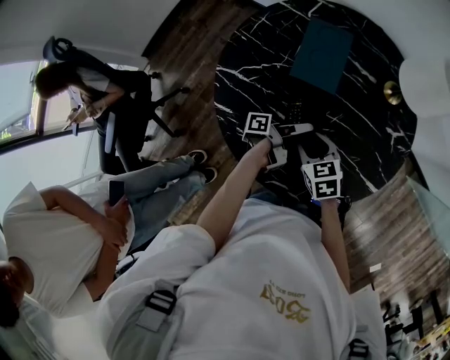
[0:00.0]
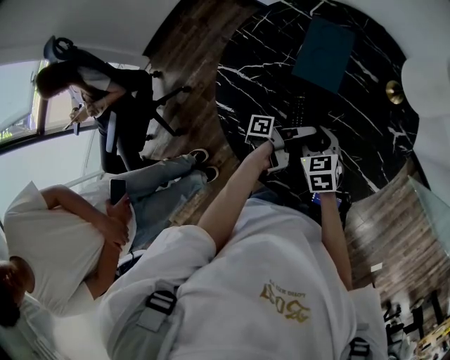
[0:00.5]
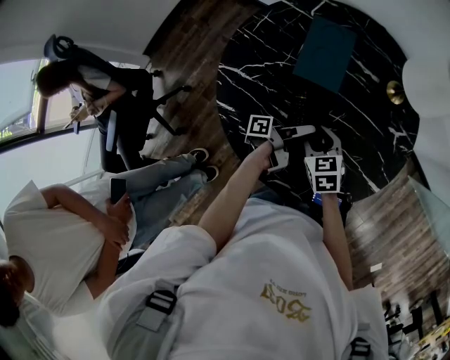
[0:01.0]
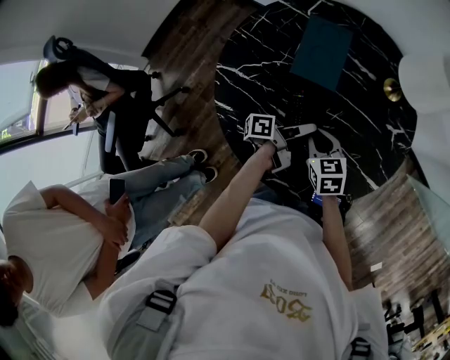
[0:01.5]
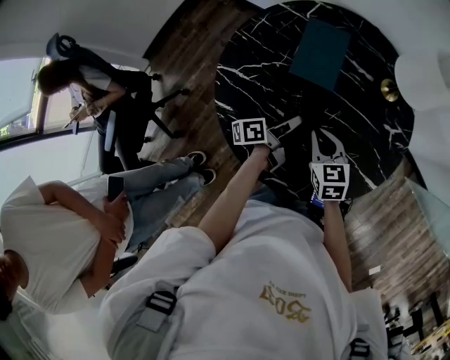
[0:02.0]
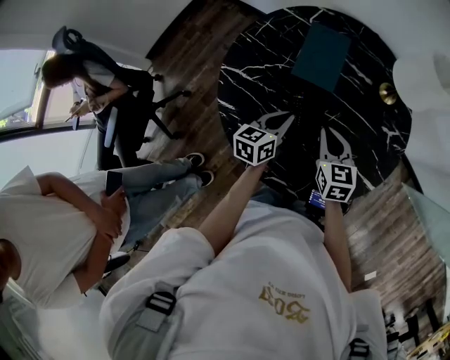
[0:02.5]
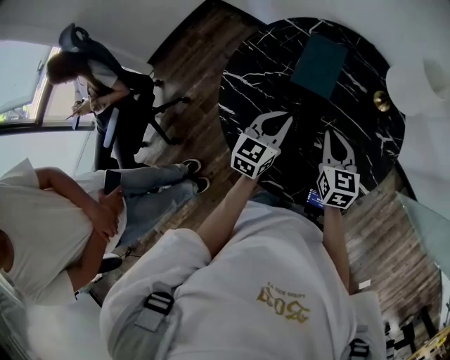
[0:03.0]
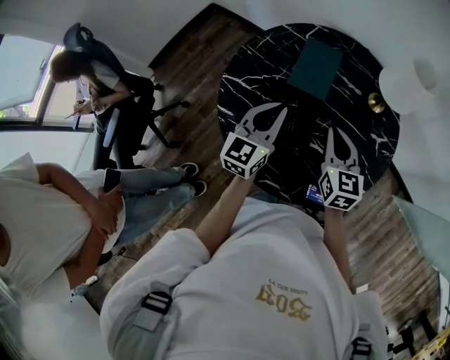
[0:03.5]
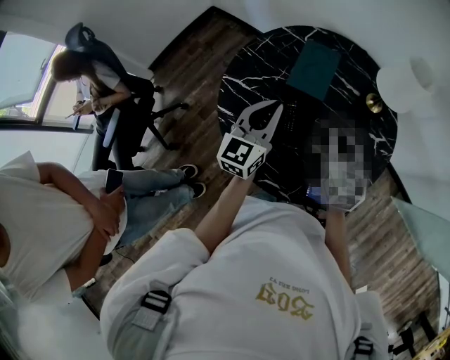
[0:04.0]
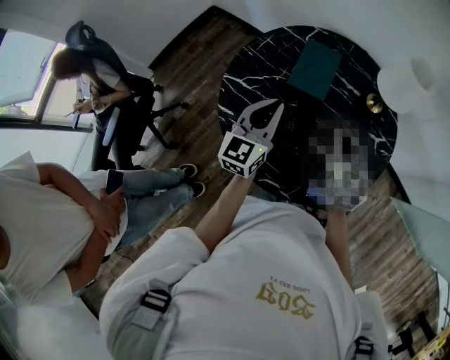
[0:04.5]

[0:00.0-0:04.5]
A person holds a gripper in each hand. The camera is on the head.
0:00.0 to 0:02.0: The left gripper turns by about 30 degrees, and closes its fingers. Meanwhile the right gripper closes its fingers.
0:02.0 to 0:04.5: The right gripper moves upward and to the right, approximately 15 cm, and turns by approximately 20 degrees, while the left gripper goes approximately 20 cm upward, and rotates around the line of its fingers by roughly 70 degrees, clockwise from behind.

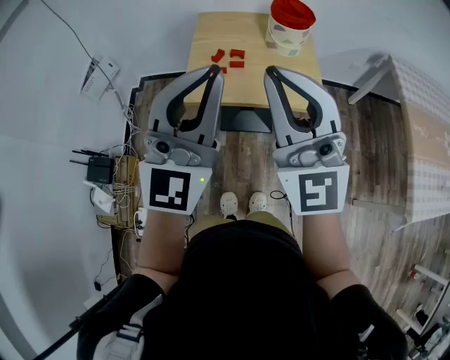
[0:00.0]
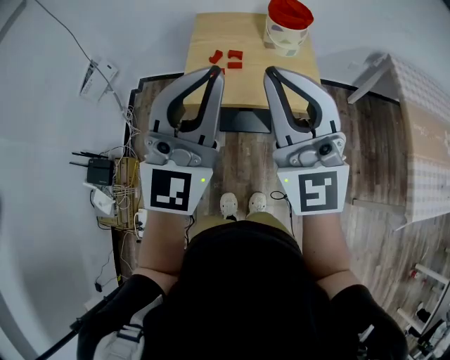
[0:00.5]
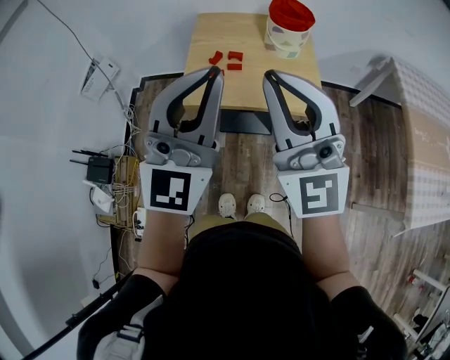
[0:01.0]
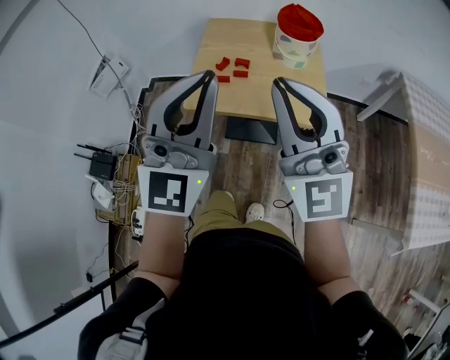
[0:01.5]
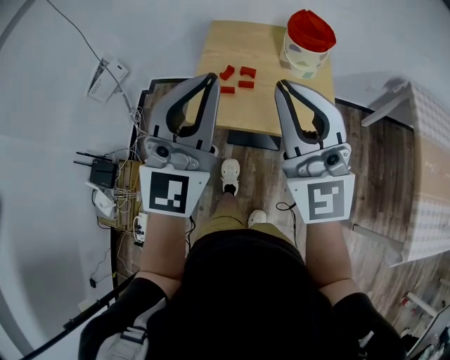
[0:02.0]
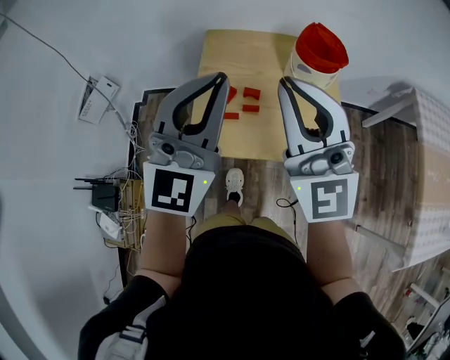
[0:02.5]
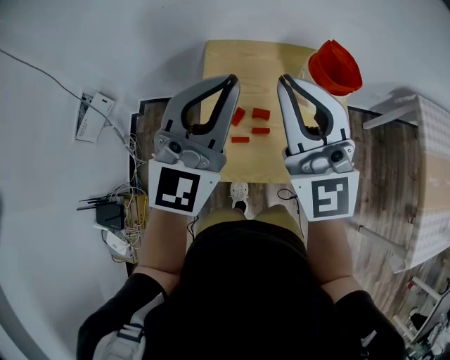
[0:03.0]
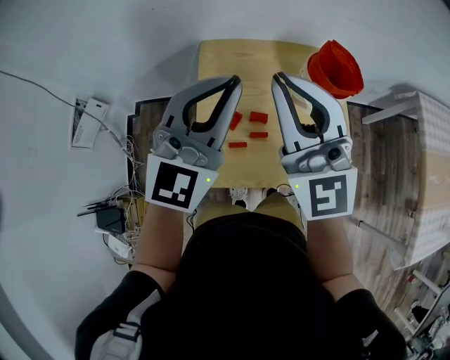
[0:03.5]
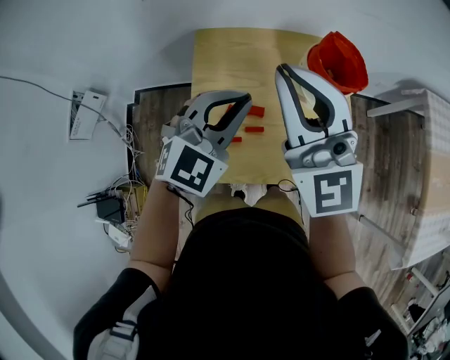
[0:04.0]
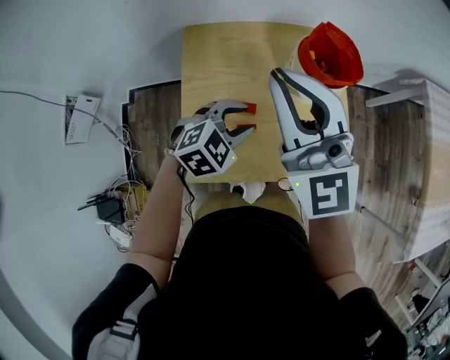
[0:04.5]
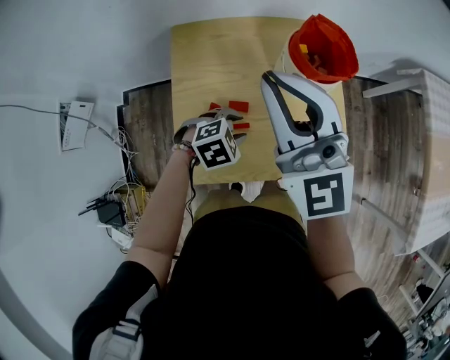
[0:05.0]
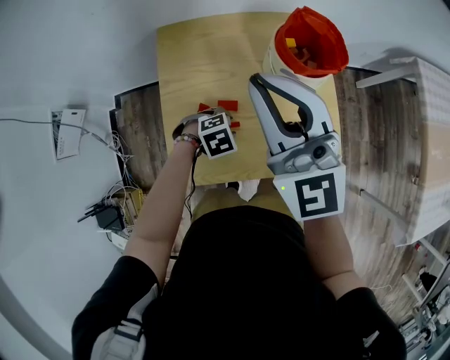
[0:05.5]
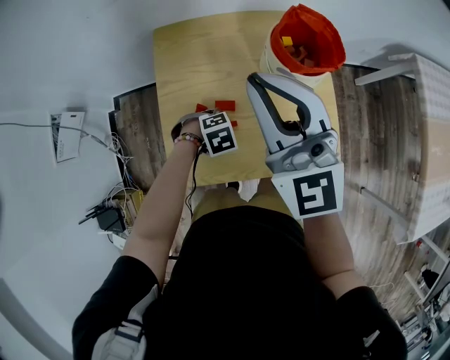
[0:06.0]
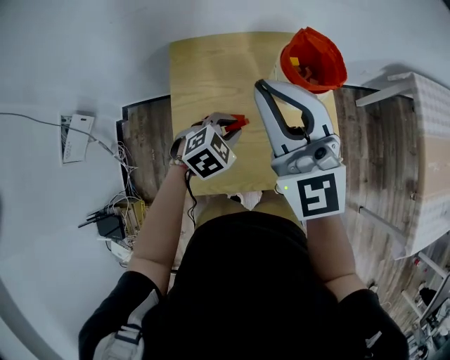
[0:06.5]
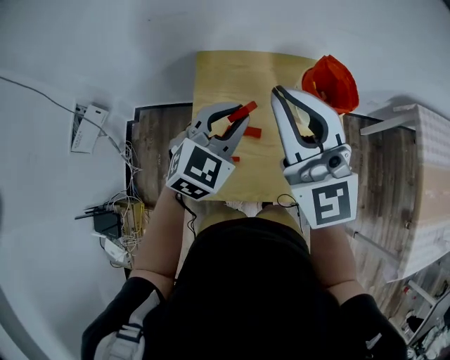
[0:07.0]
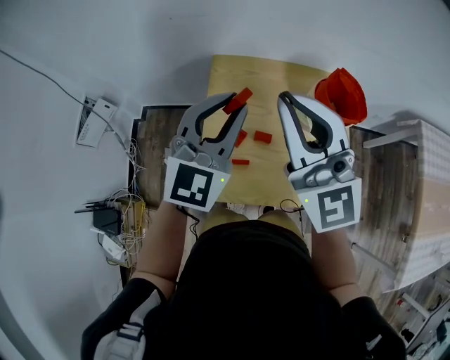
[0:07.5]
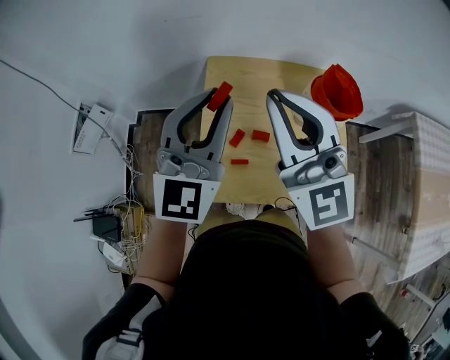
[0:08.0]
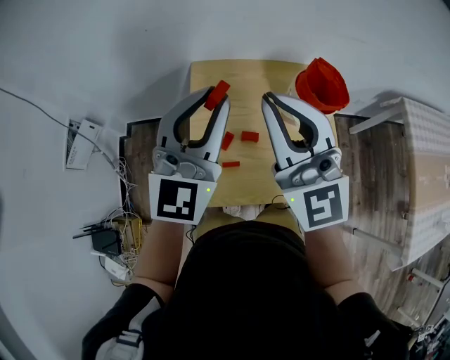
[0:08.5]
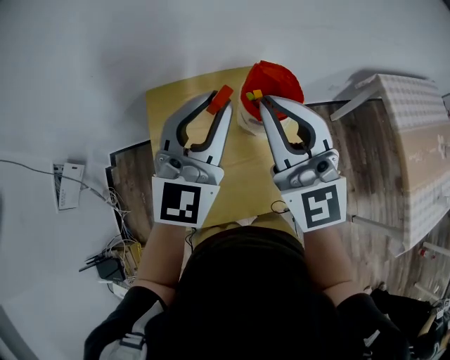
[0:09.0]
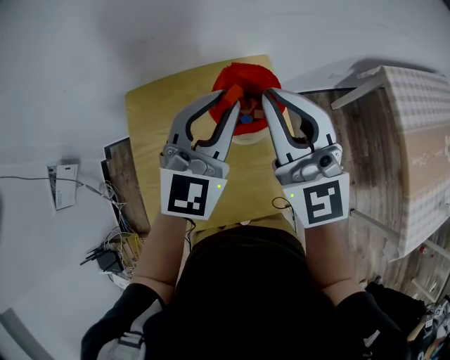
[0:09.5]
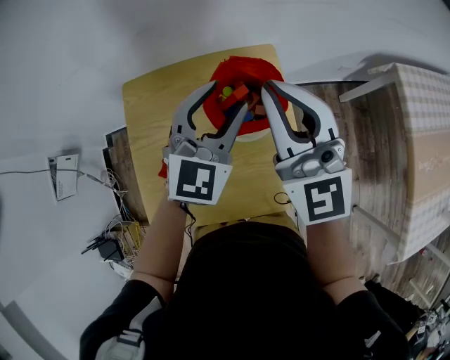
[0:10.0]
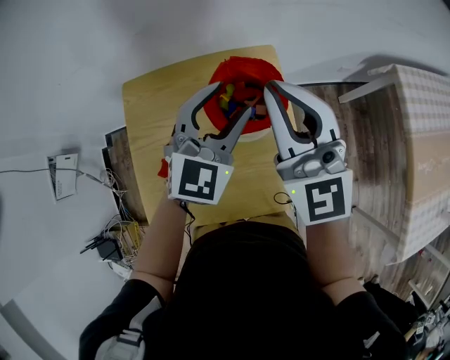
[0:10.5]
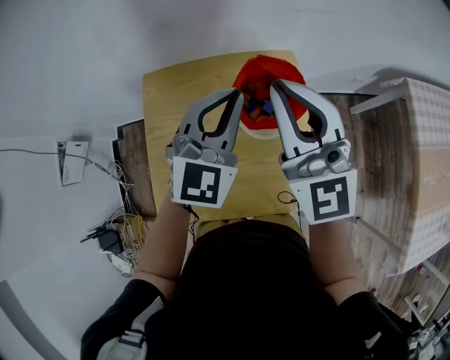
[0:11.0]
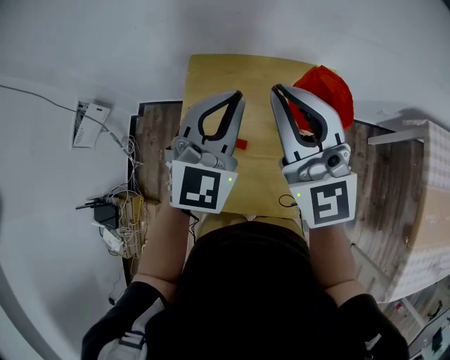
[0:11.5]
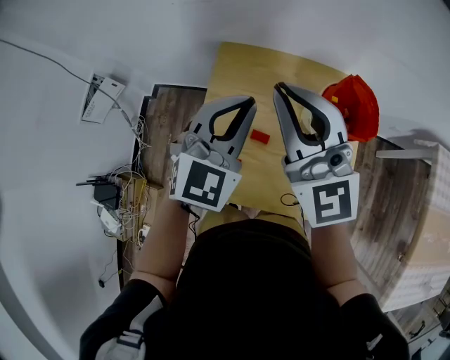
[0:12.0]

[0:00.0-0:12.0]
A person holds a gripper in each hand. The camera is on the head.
0:00.0 to 0:02.0: The two grippers go approximately 10 cm forward.
0:02.0 to 0:04.0: The right gripper is displaced forward by roughly 30 cm, while the left gripper shifts approximately 35 cm forward and downward, and points its fingers about 40 degrees further downward.
0:04.0 to 0:06.0: The right gripper goes roughly 5 cm downward. Meanwhile the left gripper goes some 30 cm downward, tilts its fingers approximately 60 degrees downward, and opens and closes again.
0:06.0 to 0:08.0: The left gripper is displaced upward by roughly 40 cm, and tips its fingers upward by roughly 90 degrees. The right gripper shifts by roughly 15 cm.
0:08.0 to 0:10.0: The right gripper travels to the right and forward by approximately 30 cm. The left gripper travels to the right, forward and downward by approximately 35 cm, swivels approximately 20 degrees, and opens.
0:10.0 to 0:12.0: The two grippers go approximately 25 cm to the left. The left gripper closes its fingers. The right gripper swivels some 20 degrees.

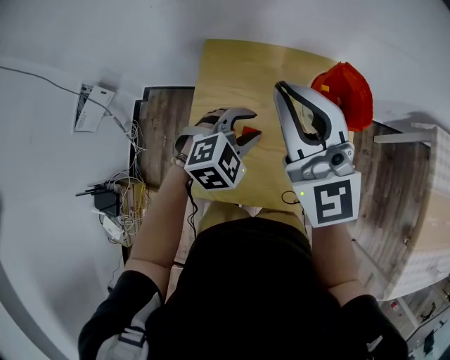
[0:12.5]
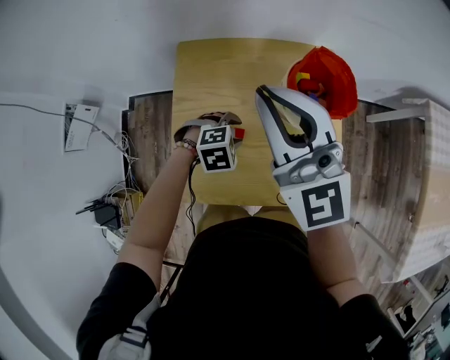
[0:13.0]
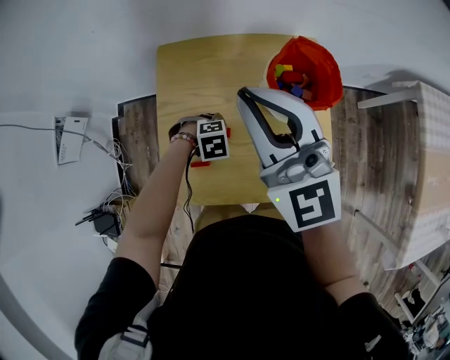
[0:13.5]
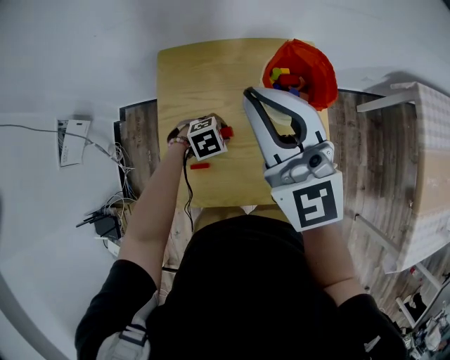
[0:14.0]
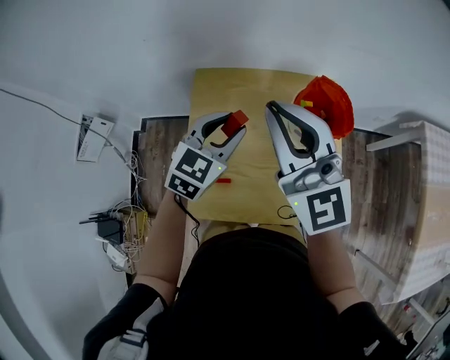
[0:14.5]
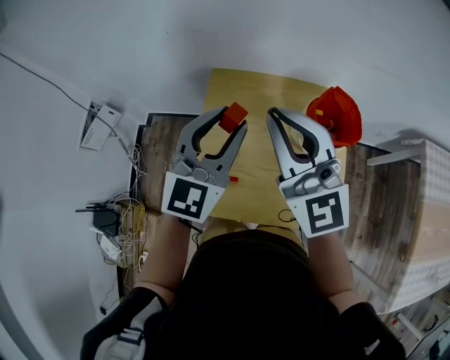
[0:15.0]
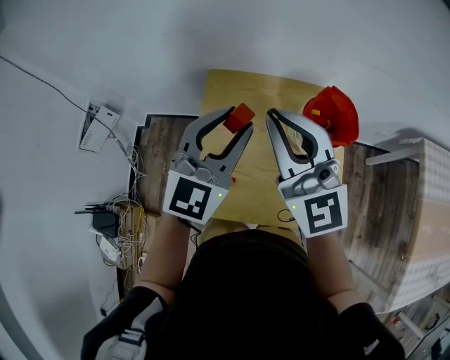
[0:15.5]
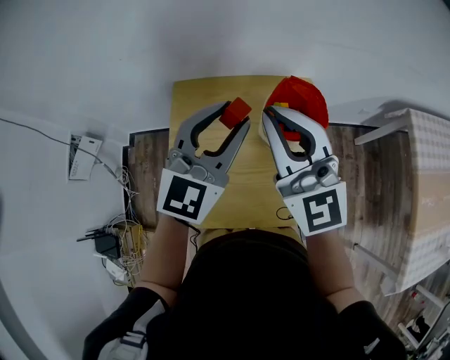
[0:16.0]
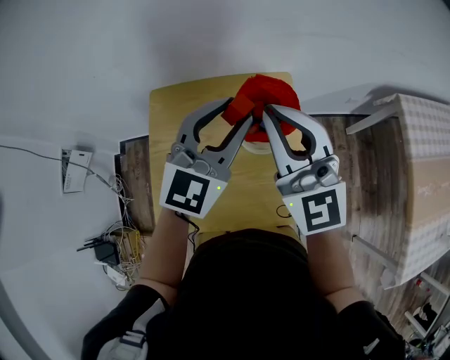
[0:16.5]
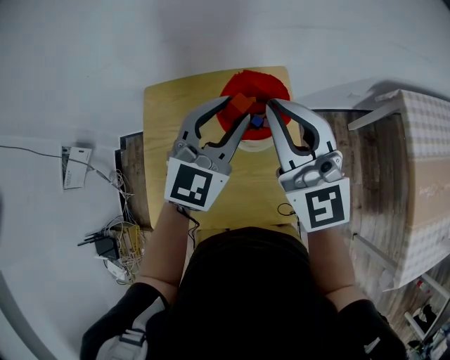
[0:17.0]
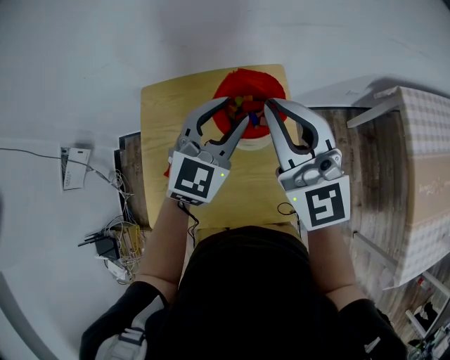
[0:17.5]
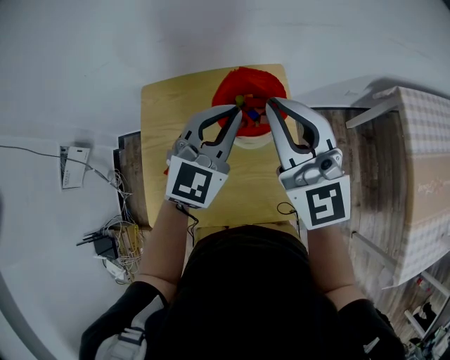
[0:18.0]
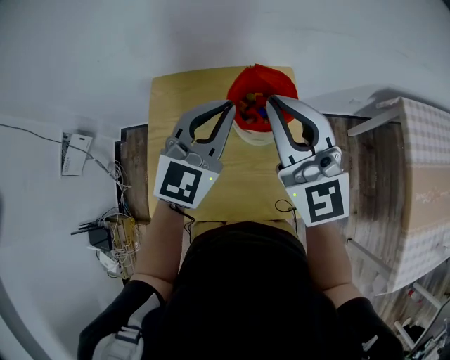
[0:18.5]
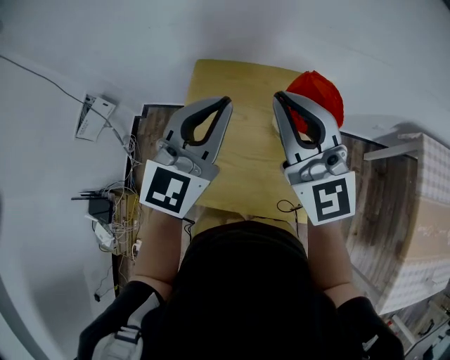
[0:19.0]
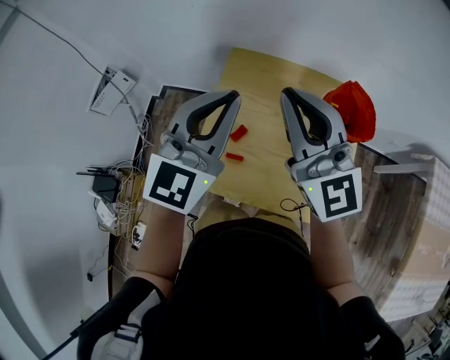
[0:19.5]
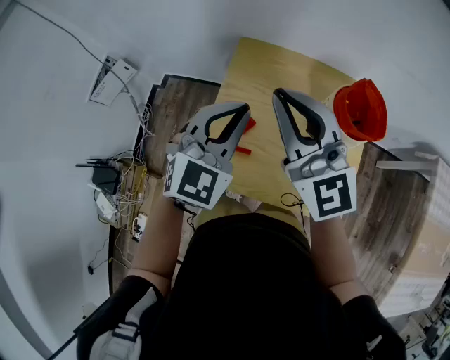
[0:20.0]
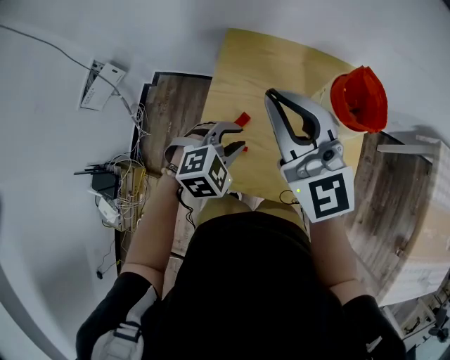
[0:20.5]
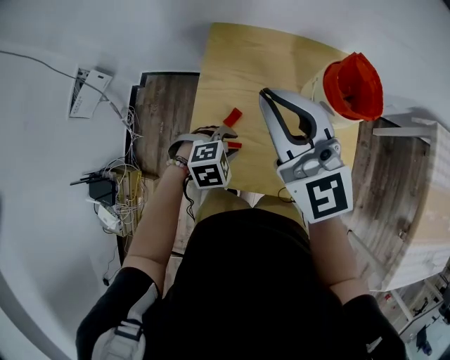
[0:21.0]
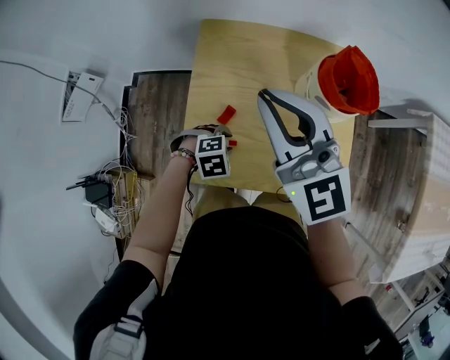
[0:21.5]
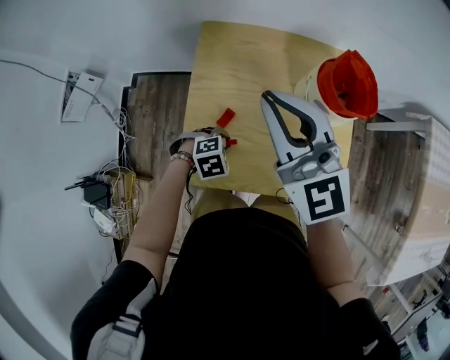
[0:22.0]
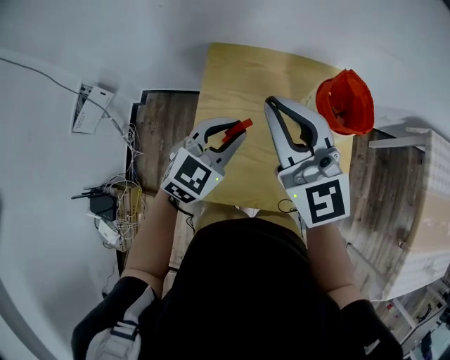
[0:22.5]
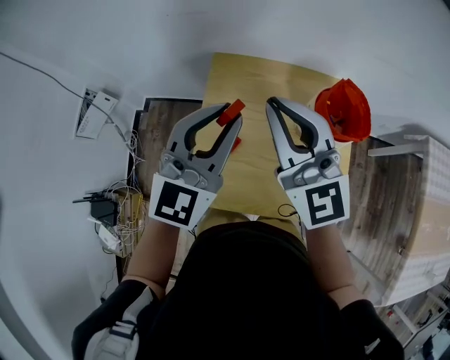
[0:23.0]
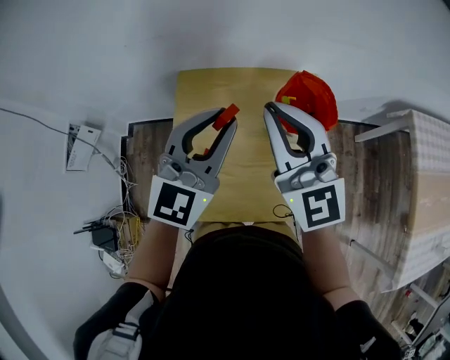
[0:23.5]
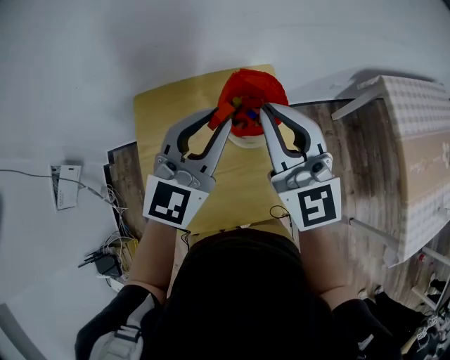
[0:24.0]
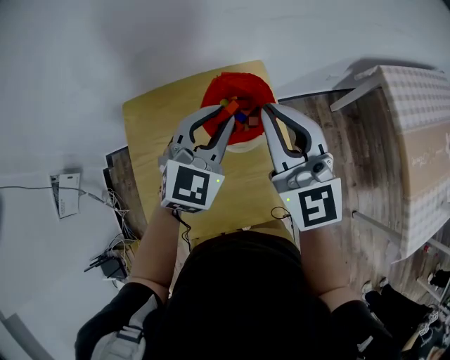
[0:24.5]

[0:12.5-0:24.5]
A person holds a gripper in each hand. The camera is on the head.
0:12.5 to 0:14.5: The left gripper moves about 20 cm downward and comes back, and changes its angle by approximately 30 degrees.
0:14.5 to 0:16.5: The left gripper moves to the right and upward, roughly 20 cm, and rotates roughly 20 degrees, while the right gripper is displaced to the right by about 15 cm.
0:16.5 to 0:18.5: The left gripper closes up.
0:18.5 to 0:20.5: The right gripper shifts about 25 cm to the left. Meanwhile the left gripper moves to the left and downward, some 30 cm, angles its fingers downward, by about 50 degrees, and opens up.
0:20.5 to 0:22.5: The left gripper goes downward and returns, about 15 cm each way, and changes its angle by about 30 degrees.
0:22.5 to 0:24.5: The left gripper heads to the right and forward, covering about 25 cm; the right gripper heads to the right, covering some 25 cm, and swivels some 30 degrees.
